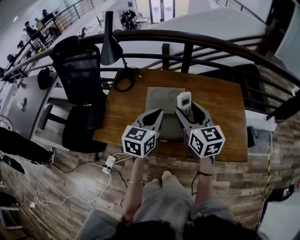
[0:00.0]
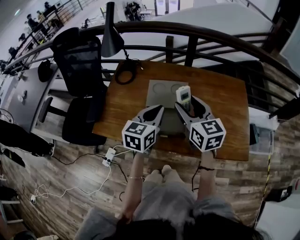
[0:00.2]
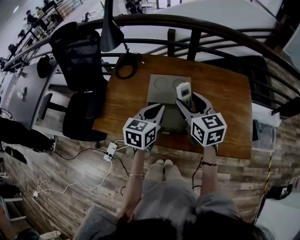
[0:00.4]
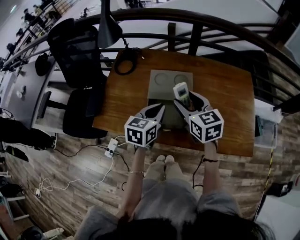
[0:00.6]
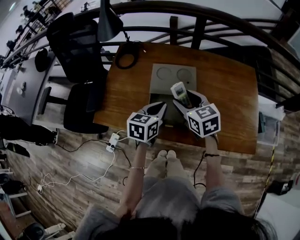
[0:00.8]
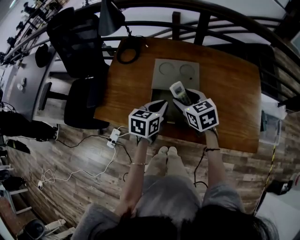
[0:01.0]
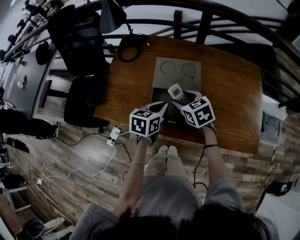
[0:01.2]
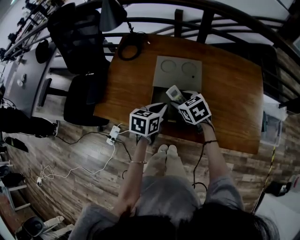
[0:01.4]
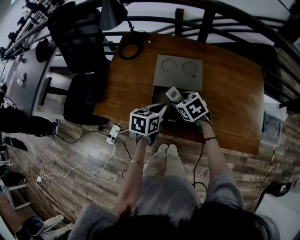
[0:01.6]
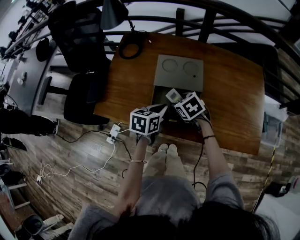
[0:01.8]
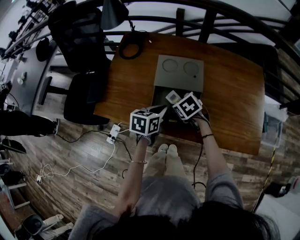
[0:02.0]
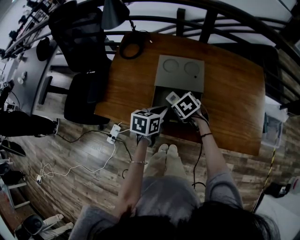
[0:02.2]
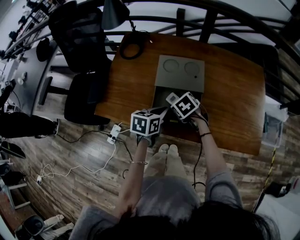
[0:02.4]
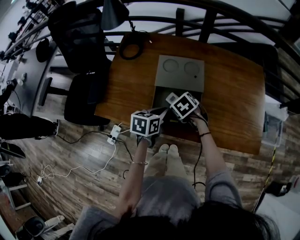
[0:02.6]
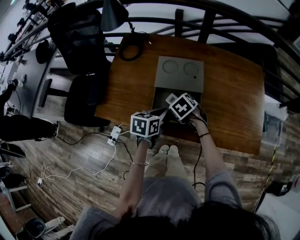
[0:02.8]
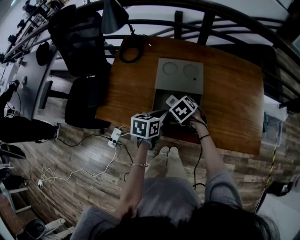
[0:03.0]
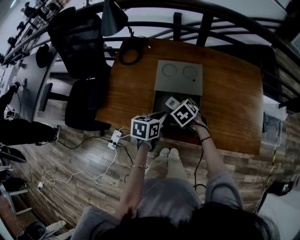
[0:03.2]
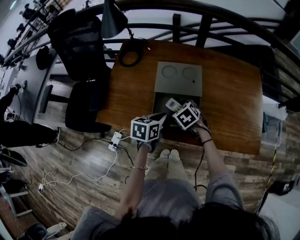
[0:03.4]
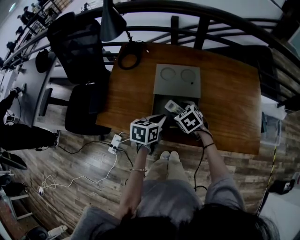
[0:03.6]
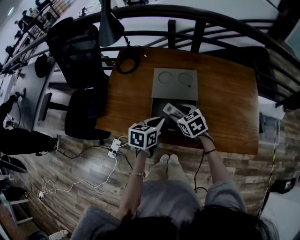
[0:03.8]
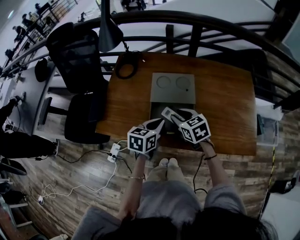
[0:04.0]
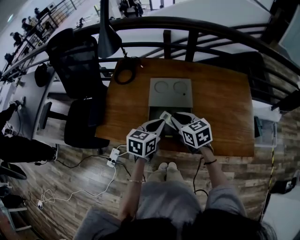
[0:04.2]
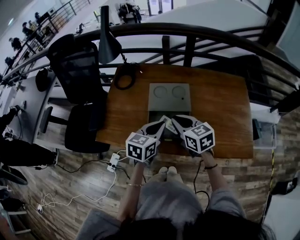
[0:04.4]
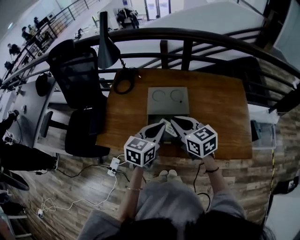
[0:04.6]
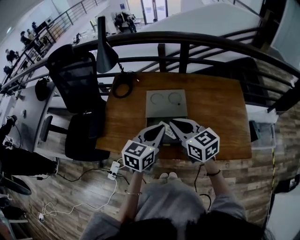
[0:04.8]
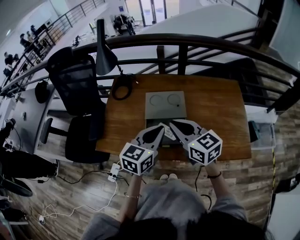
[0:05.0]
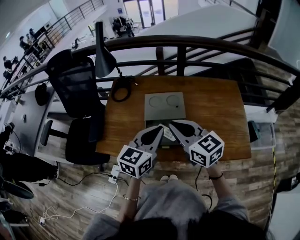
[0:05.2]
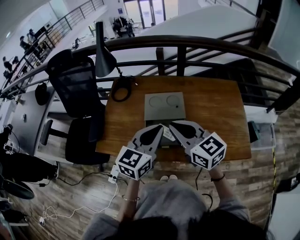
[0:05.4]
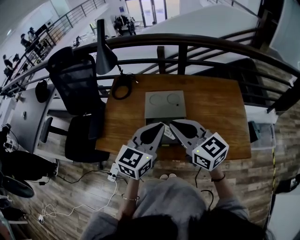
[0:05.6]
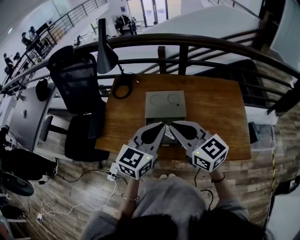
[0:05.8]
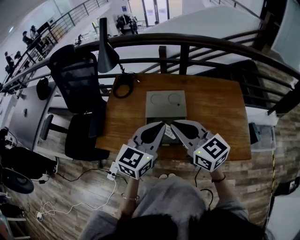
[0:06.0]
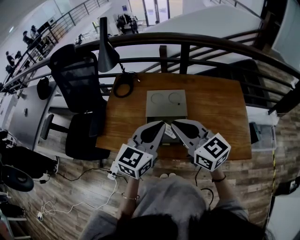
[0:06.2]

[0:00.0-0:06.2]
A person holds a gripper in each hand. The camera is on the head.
0:00.0 to 0:01.6: Both grippers move downward, approximately 20 cm. The left gripper swivels some 30 degrees, while the right gripper angles its fingers downward, by about 40 degrees.
0:01.6 to 0:03.2: The right gripper shifts by some 5 cm.
0:03.2 to 0:04.6: The right gripper travels upward by roughly 20 cm, tips its fingers upward by approximately 40 degrees, and closes up. Meanwhile the left gripper travels upward by about 15 cm, and turns by approximately 30 degrees.
0:04.6 to 0:06.2: The right gripper travels upward and backward by some 10 cm. Meanwhile the left gripper shifts some 10 cm upward.

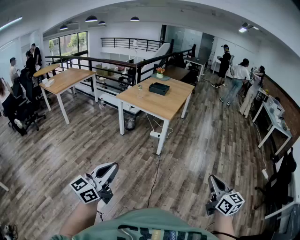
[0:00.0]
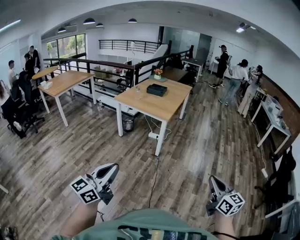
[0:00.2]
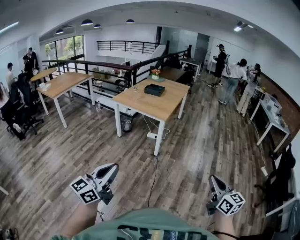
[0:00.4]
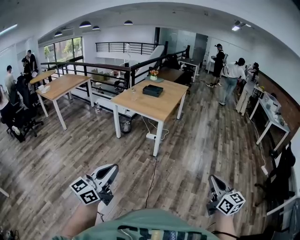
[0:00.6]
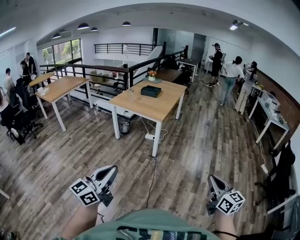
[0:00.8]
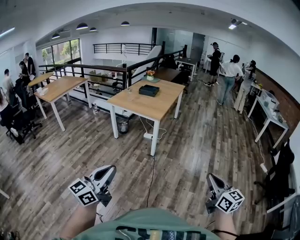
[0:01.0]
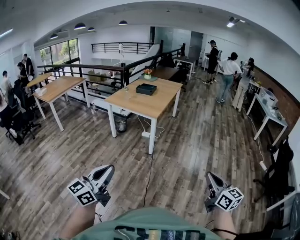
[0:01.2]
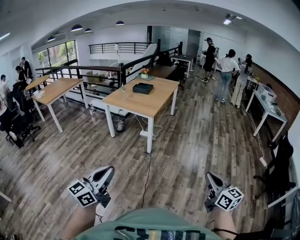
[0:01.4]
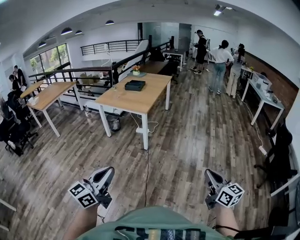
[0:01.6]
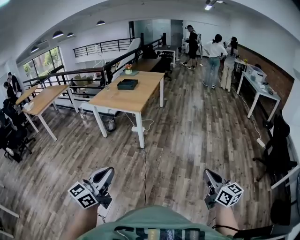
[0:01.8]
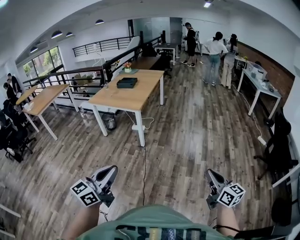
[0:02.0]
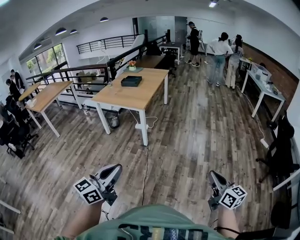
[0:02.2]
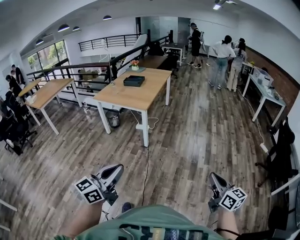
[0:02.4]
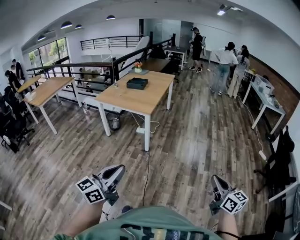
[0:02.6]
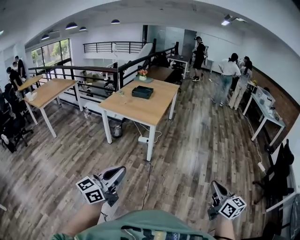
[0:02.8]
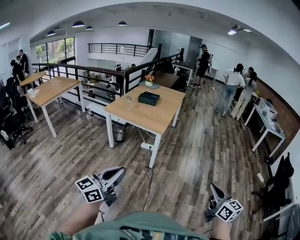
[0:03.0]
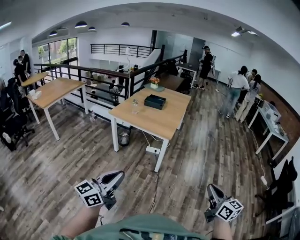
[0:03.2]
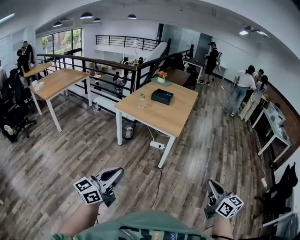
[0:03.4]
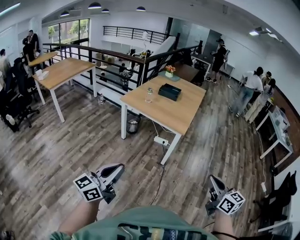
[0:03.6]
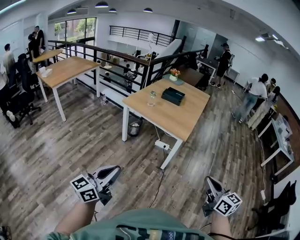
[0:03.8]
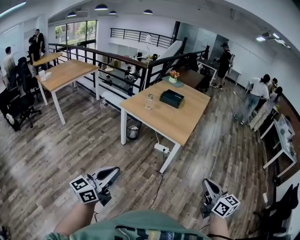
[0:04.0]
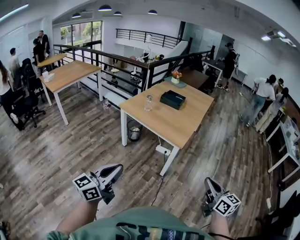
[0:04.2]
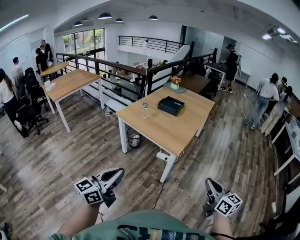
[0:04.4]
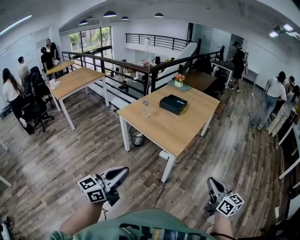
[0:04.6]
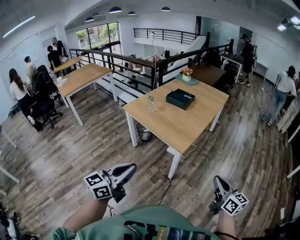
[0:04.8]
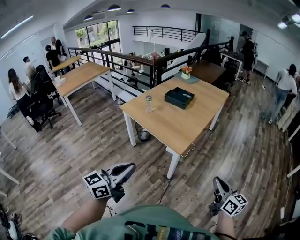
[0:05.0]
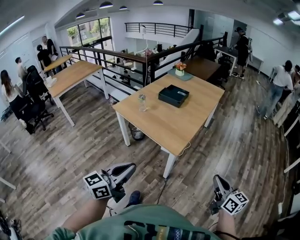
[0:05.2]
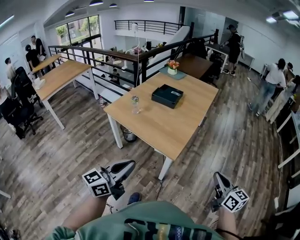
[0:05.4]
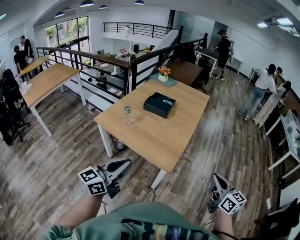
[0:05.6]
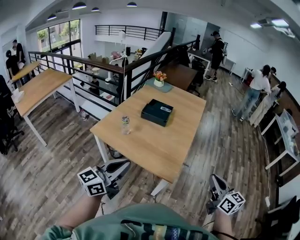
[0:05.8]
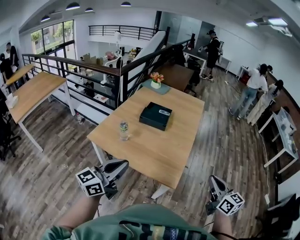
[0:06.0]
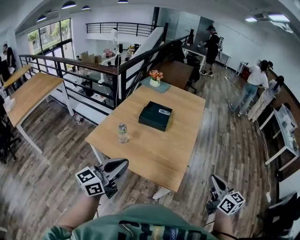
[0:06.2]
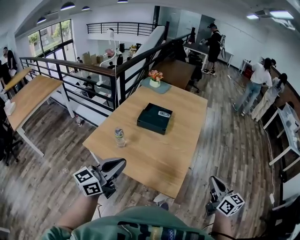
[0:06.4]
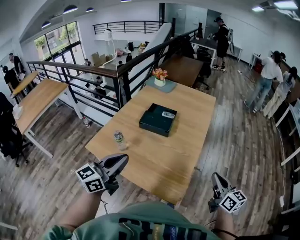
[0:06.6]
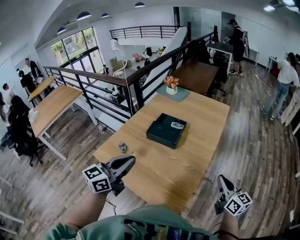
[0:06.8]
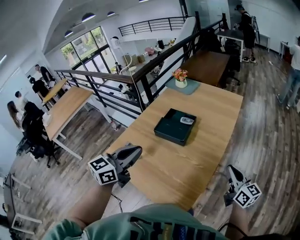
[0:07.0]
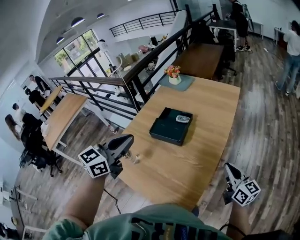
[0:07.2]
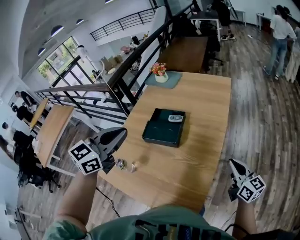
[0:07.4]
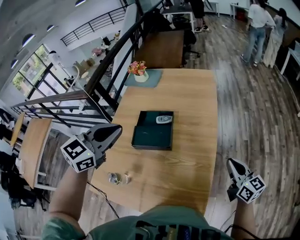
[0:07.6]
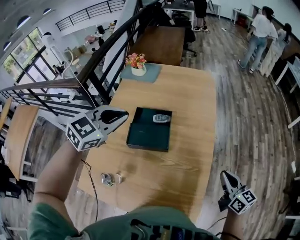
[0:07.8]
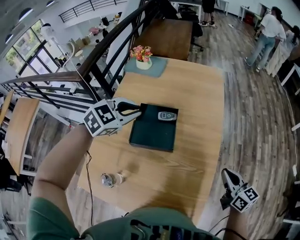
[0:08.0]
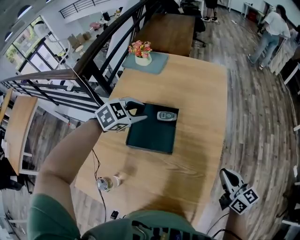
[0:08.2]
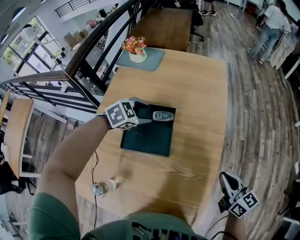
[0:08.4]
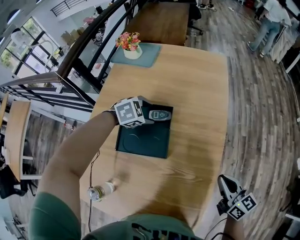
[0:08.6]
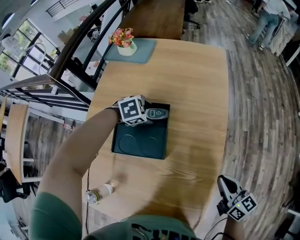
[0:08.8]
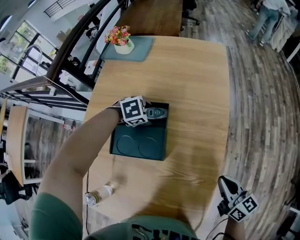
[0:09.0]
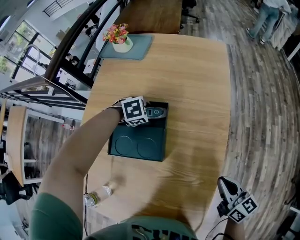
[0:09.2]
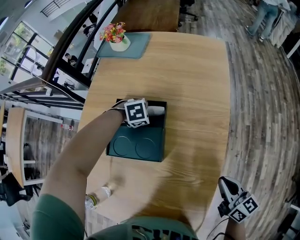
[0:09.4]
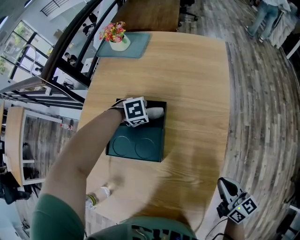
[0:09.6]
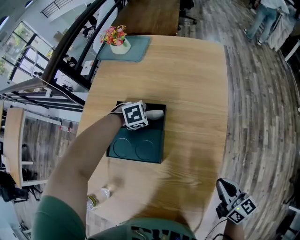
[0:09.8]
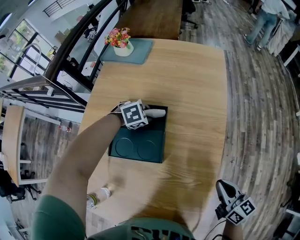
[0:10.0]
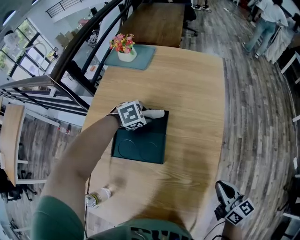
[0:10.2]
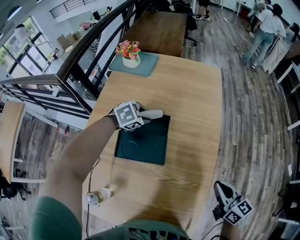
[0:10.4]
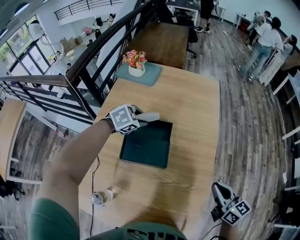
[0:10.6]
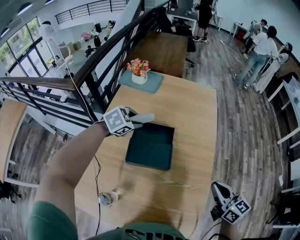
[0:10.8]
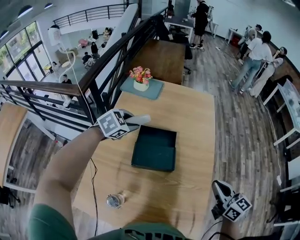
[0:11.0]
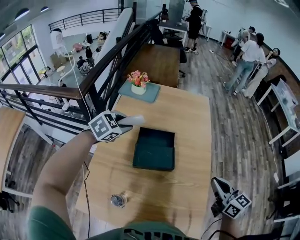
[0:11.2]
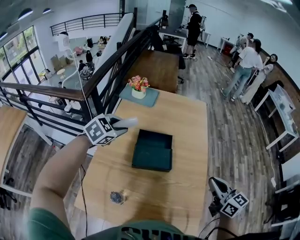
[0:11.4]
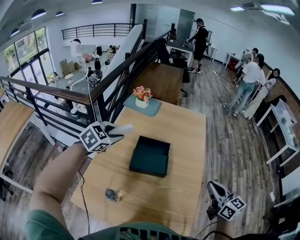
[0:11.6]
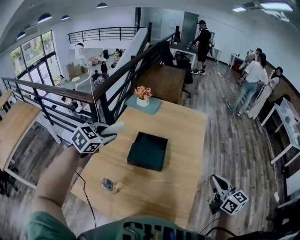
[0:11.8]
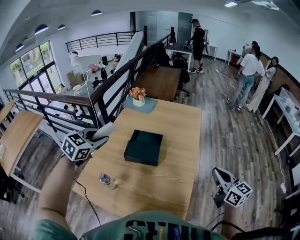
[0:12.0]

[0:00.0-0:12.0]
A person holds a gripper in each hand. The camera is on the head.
0:00.0 to 0:01.6: Both grippers travel together to the right, roughly 15 cm.
0:01.6 to 0:03.0: Both grippers move to the left and forward, some 25 cm.
0:03.0 to 0:04.4: The grippers both shift forward by some 30 cm.
0:04.4 to 0:06.0: Both grippers move forward, about 35 cm.
0:06.0 to 0:07.6: Both grippers move forward, some 40 cm. The left gripper rotates roughly 40 degrees.
0:07.6 to 0:09.0: The left gripper goes some 50 cm downward and forward, tilts its fingers approximately 50 degrees downward, and opens up; the right gripper goes roughly 15 cm downward and to the left.
0:09.0 to 0:10.4: Both grippers move upward, approximately 5 cm. The left gripper closes.
0:10.4 to 0:12.0: The left gripper shifts approximately 40 cm upward and backward, and tips its fingers upward by roughly 30 degrees, while the right gripper shifts approximately 20 cm upward and backward.

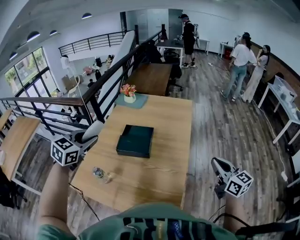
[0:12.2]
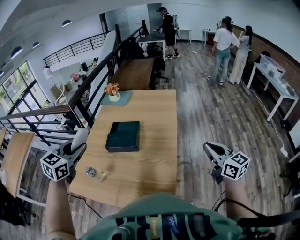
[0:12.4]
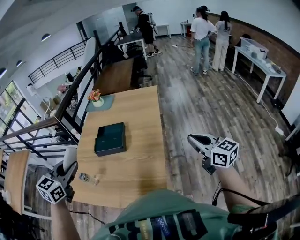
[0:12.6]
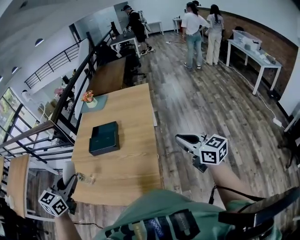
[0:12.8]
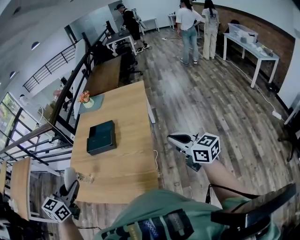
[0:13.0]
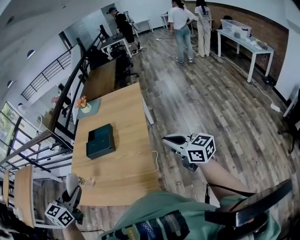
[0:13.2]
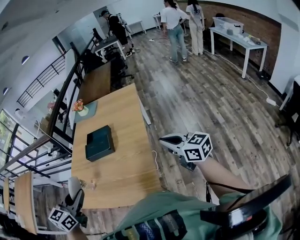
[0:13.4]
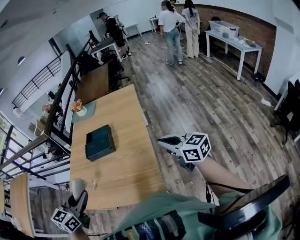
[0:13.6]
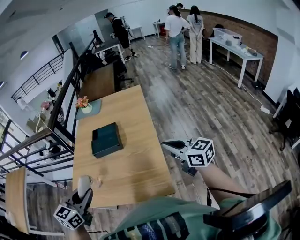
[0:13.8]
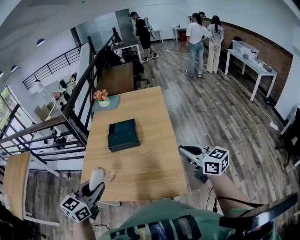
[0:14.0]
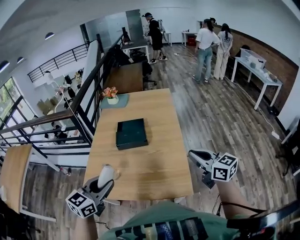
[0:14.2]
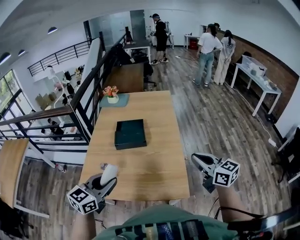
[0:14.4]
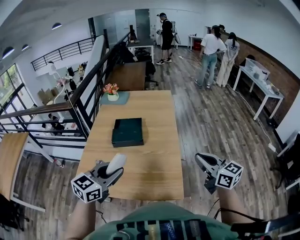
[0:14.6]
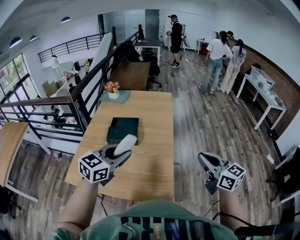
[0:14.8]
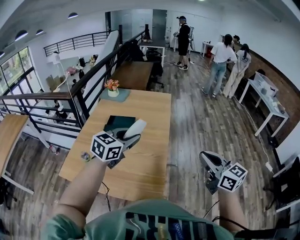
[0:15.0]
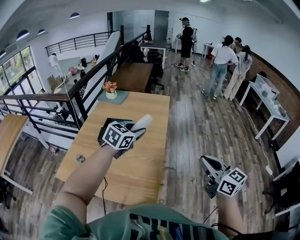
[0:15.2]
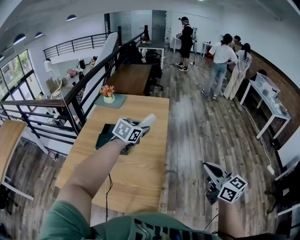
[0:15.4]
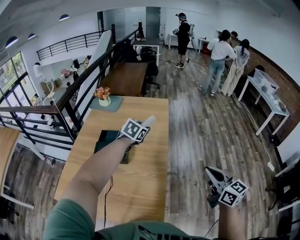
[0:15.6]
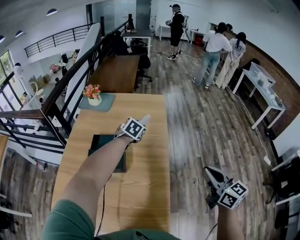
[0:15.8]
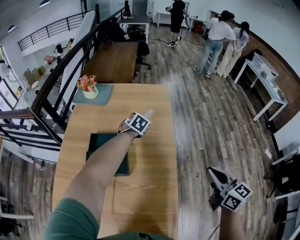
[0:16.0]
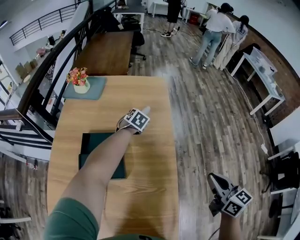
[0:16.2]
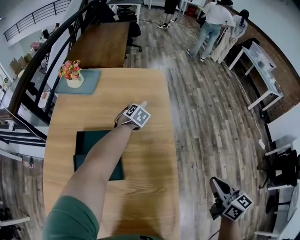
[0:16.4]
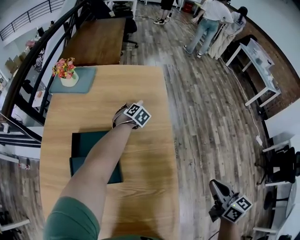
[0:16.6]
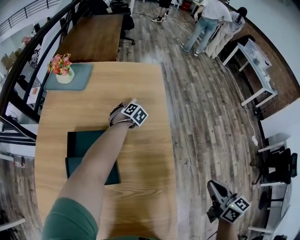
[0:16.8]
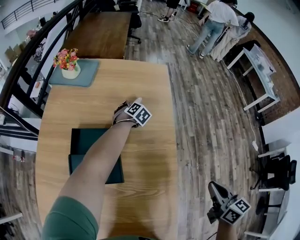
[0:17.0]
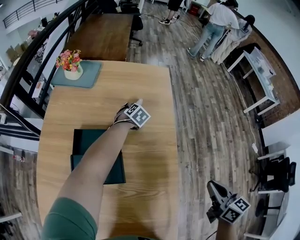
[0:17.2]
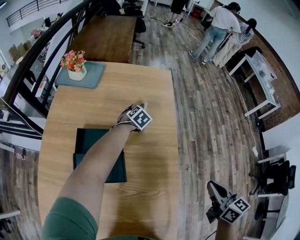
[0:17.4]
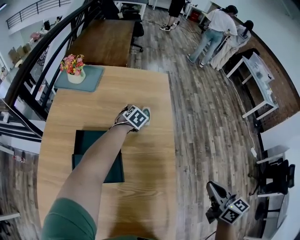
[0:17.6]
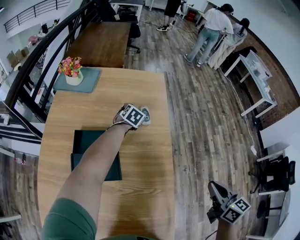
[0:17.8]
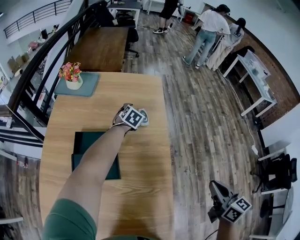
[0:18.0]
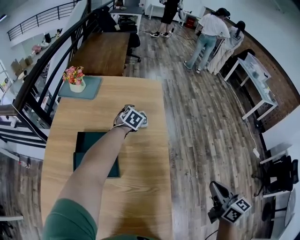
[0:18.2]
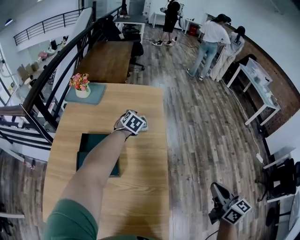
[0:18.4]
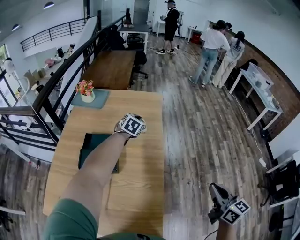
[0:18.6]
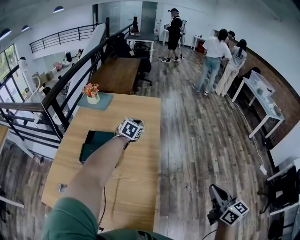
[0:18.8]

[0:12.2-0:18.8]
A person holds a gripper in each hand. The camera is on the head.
0:12.2 to 0:13.8: The left gripper shifts approximately 25 cm backward. The right gripper is displaced backward and to the left by roughly 15 cm.
0:13.8 to 0:15.4: The right gripper moves to the right, some 15 cm; the left gripper heads forward and to the right, covering about 40 cm.
0:15.4 to 0:17.2: The right gripper goes about 30 cm forward, downward and to the left, and turns by some 30 degrees. Meanwhile the left gripper travels forward and downward by approximately 50 cm, swivels roughly 20 degrees, and opens up.
0:17.2 to 0:18.8: The right gripper shifts approximately 25 cm to the right, backward and upward, while the left gripper shifts about 30 cm upward and backward, turns by approximately 20 degrees, and closes its fingers.
